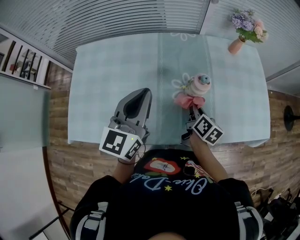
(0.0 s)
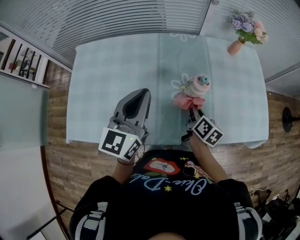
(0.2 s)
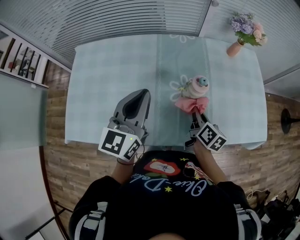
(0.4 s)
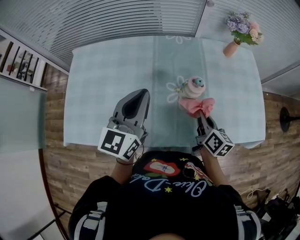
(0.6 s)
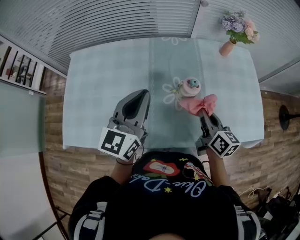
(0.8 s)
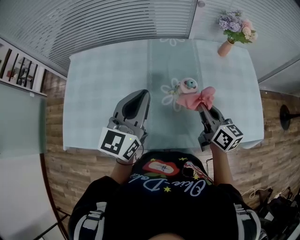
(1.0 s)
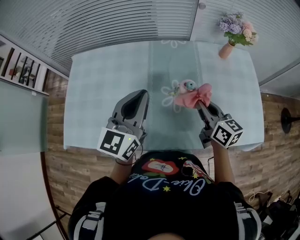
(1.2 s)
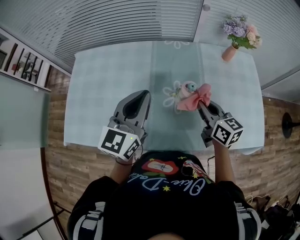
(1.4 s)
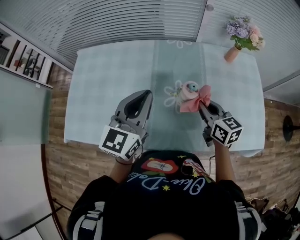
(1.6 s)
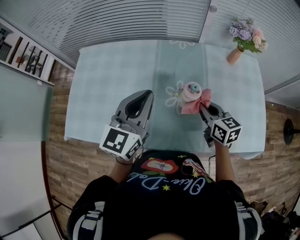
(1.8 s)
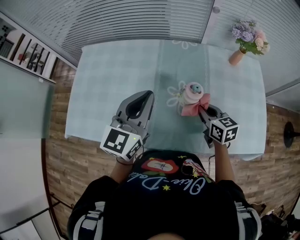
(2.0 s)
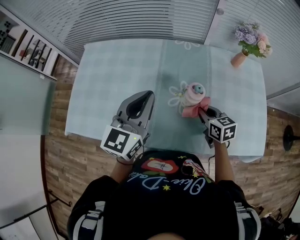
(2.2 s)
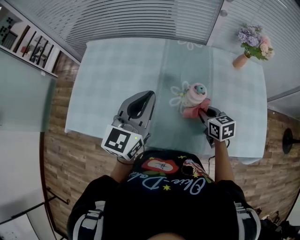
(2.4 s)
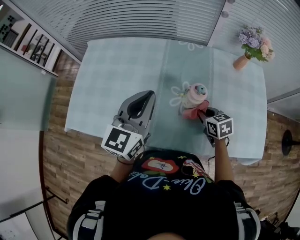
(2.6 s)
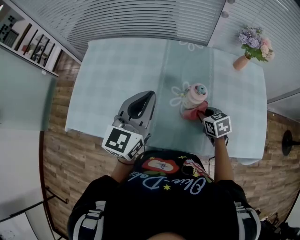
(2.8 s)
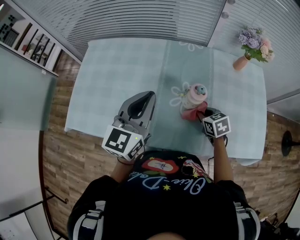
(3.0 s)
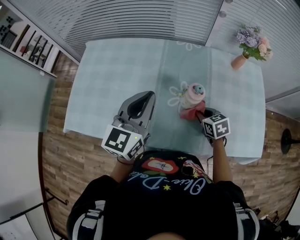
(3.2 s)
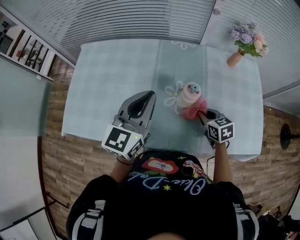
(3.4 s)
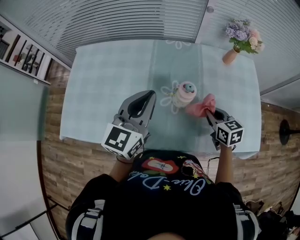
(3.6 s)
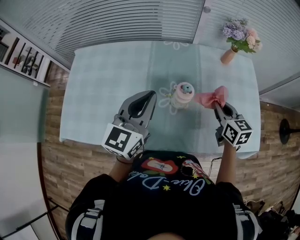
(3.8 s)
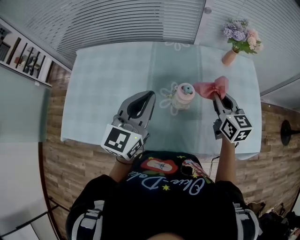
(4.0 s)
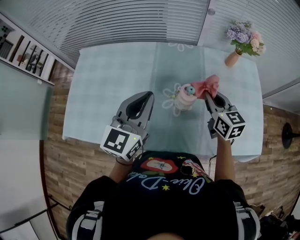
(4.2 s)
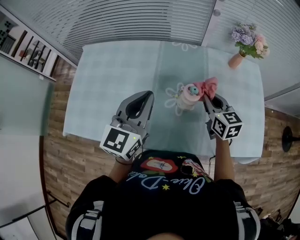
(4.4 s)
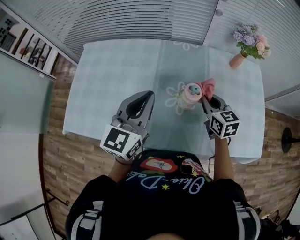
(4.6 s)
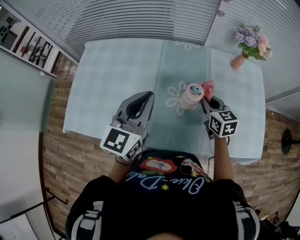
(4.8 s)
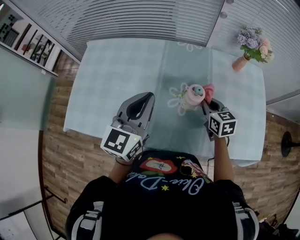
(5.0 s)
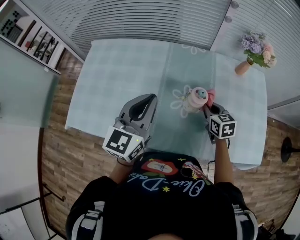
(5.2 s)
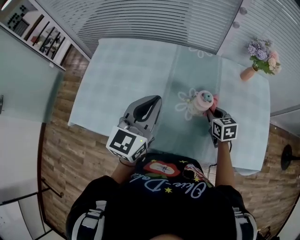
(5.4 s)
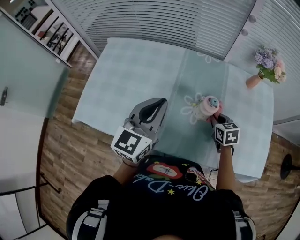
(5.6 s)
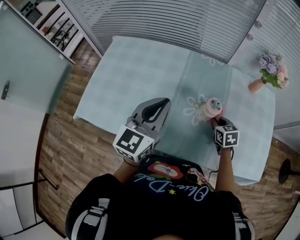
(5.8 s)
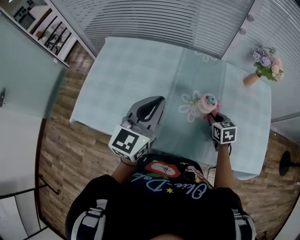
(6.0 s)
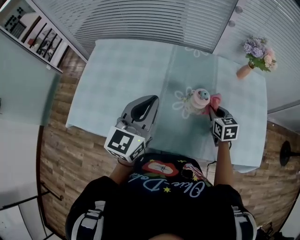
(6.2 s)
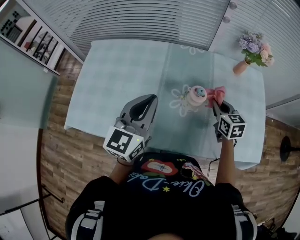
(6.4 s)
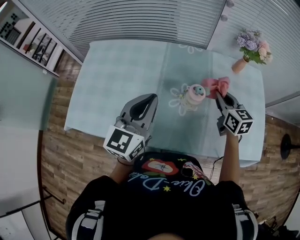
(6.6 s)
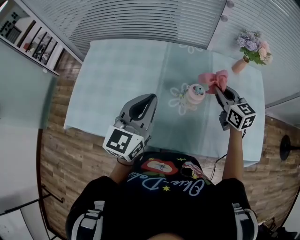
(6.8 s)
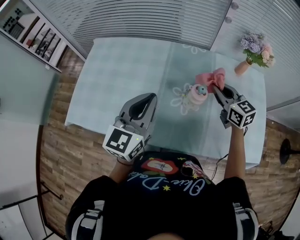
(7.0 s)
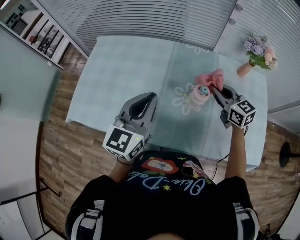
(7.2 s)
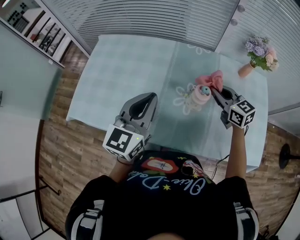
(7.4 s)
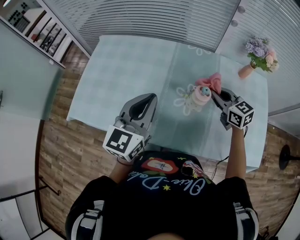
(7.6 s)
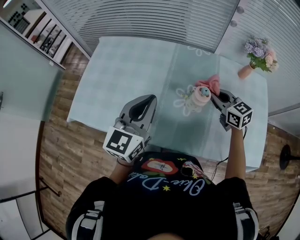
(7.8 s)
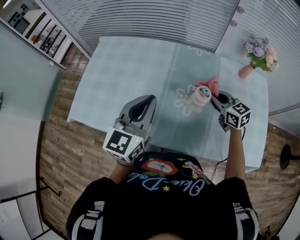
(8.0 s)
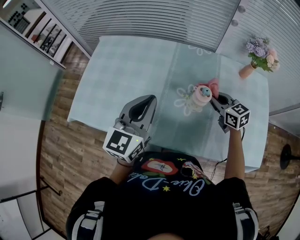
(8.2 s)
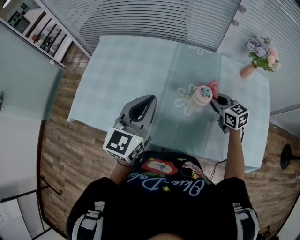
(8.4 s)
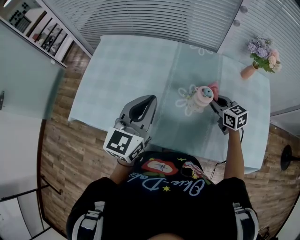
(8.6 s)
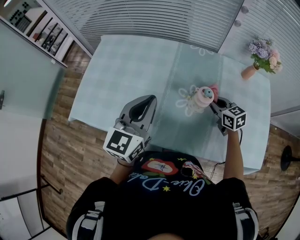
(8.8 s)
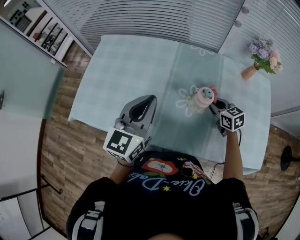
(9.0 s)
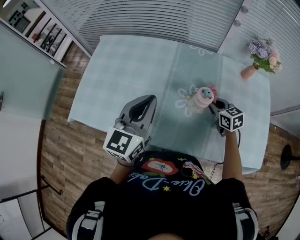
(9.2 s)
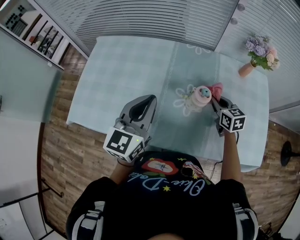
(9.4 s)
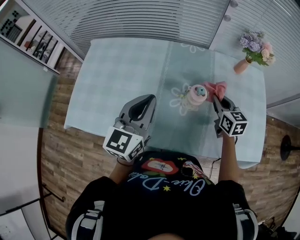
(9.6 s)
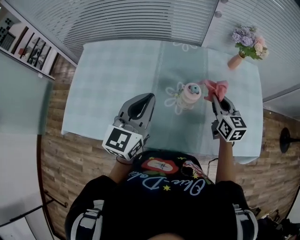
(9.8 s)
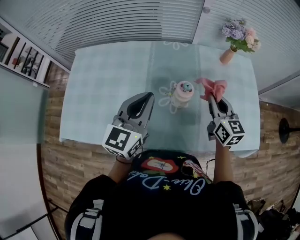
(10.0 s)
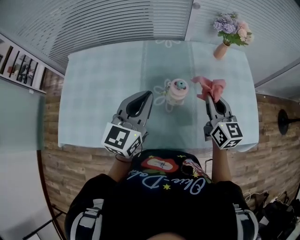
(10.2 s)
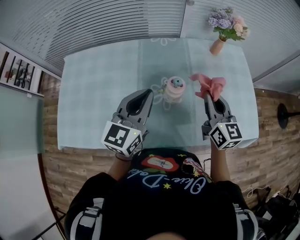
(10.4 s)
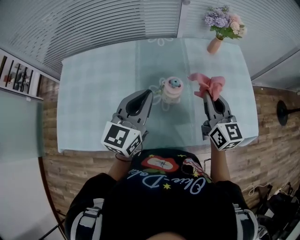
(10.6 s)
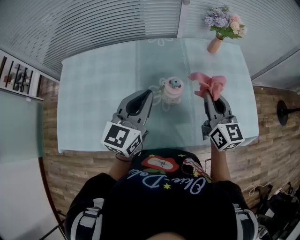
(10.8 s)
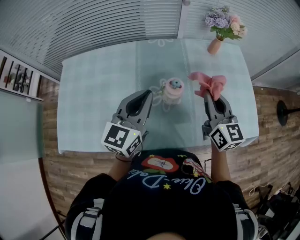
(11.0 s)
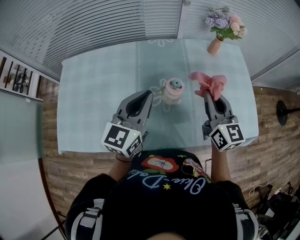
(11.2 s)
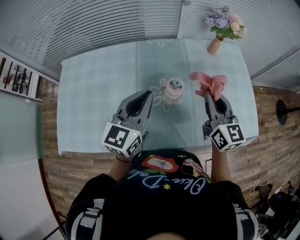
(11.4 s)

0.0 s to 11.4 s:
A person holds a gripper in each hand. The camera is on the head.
0.0 to 1.4 s: The right gripper goes about 10 cm upward, and turns by about 40 degrees.
1.4 to 2.8 s: The right gripper goes approximately 15 cm downward, and points its fingers roughly 30 degrees further downward.
2.8 to 4.2 s: The right gripper goes some 15 cm upward, and rotates some 30 degrees.
4.2 to 5.6 s: The right gripper goes some 15 cm downward, and rotates approximately 30 degrees.
5.6 to 7.2 s: The right gripper moves upward, about 15 cm, and turns by about 30 degrees.
7.2 to 8.6 s: The right gripper moves downward, roughly 10 cm.
8.6 to 10.0 s: The left gripper heads to the right, covering approximately 5 cm, while the right gripper goes some 10 cm upward and to the right, and changes its angle by approximately 40 degrees.
10.0 to 11.4 s: The right gripper goes about 5 cm upward.

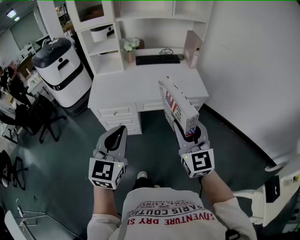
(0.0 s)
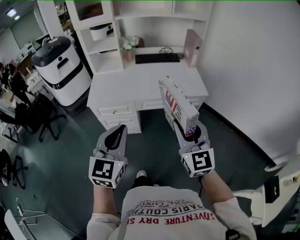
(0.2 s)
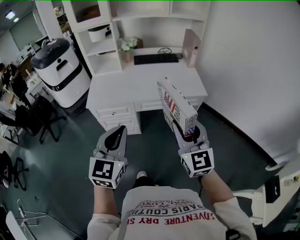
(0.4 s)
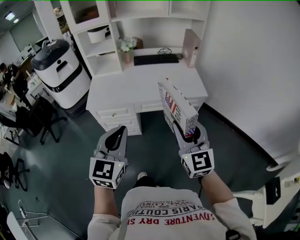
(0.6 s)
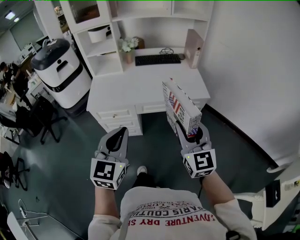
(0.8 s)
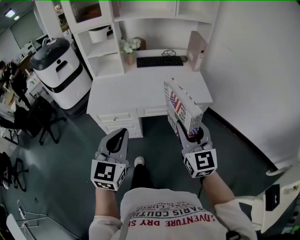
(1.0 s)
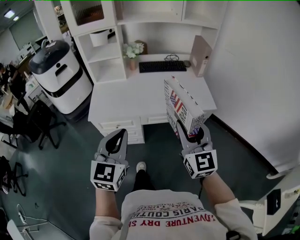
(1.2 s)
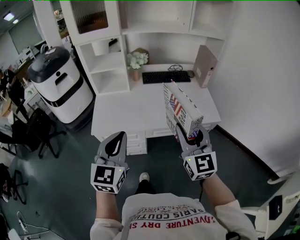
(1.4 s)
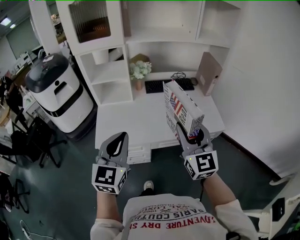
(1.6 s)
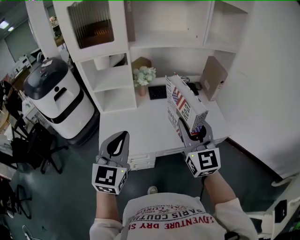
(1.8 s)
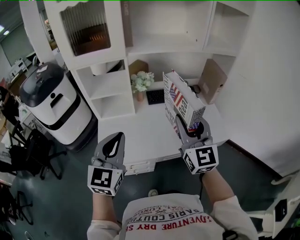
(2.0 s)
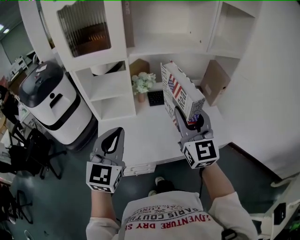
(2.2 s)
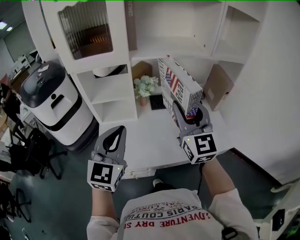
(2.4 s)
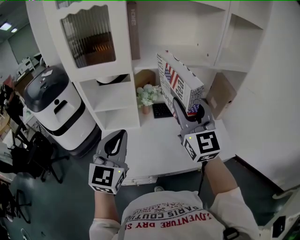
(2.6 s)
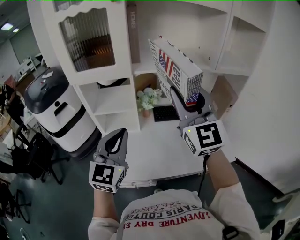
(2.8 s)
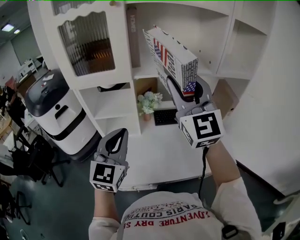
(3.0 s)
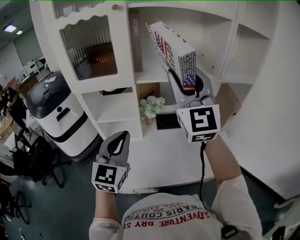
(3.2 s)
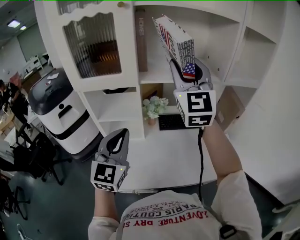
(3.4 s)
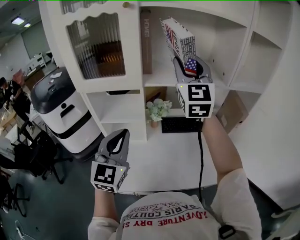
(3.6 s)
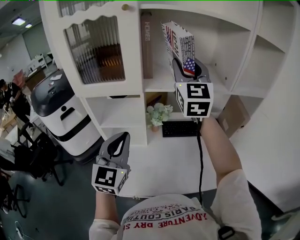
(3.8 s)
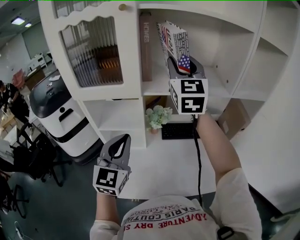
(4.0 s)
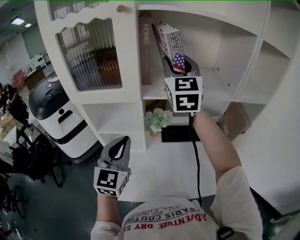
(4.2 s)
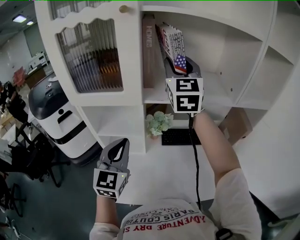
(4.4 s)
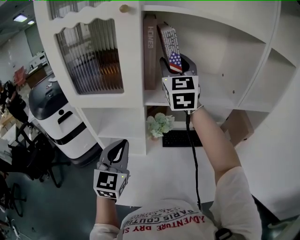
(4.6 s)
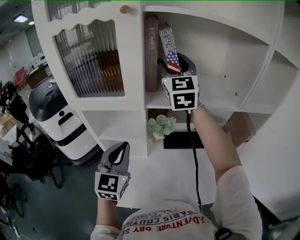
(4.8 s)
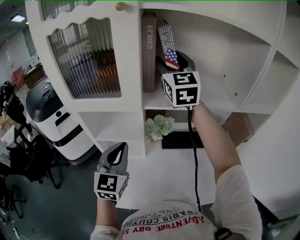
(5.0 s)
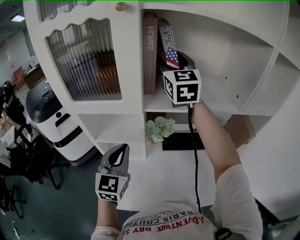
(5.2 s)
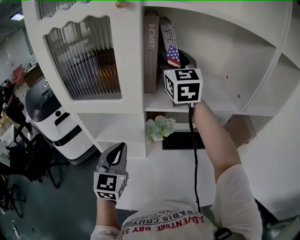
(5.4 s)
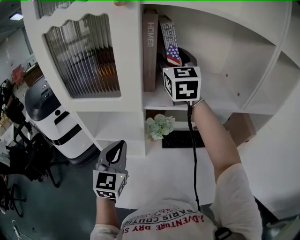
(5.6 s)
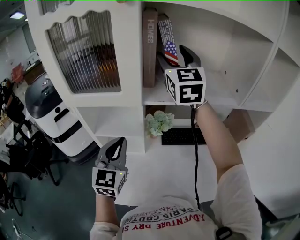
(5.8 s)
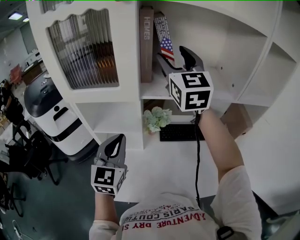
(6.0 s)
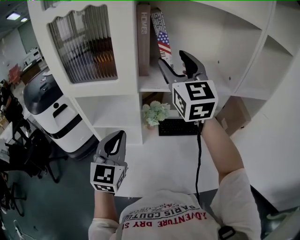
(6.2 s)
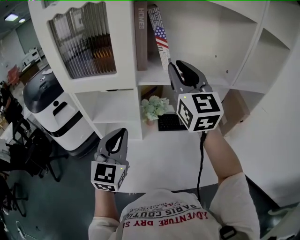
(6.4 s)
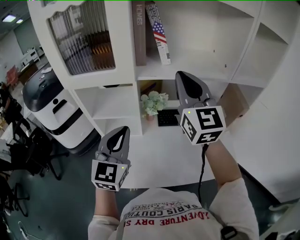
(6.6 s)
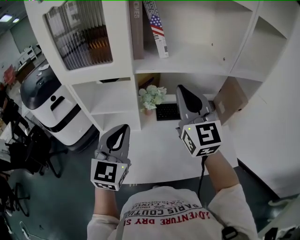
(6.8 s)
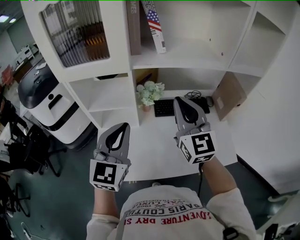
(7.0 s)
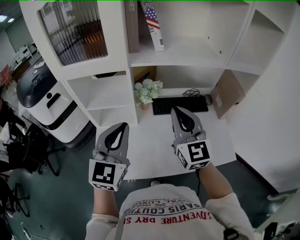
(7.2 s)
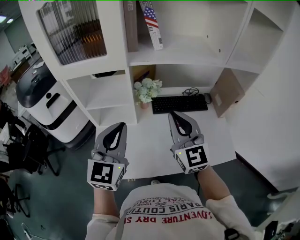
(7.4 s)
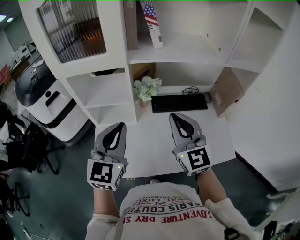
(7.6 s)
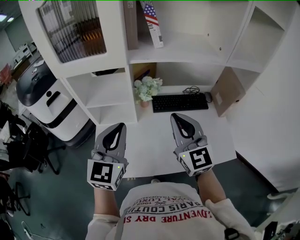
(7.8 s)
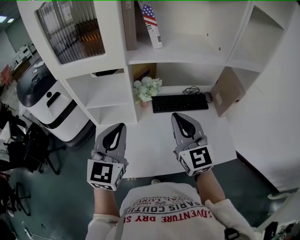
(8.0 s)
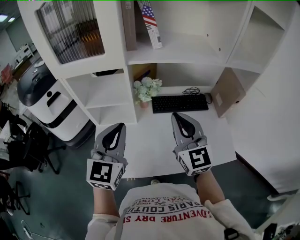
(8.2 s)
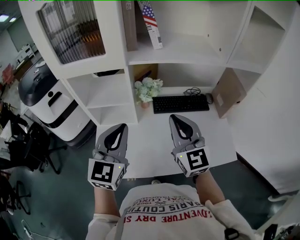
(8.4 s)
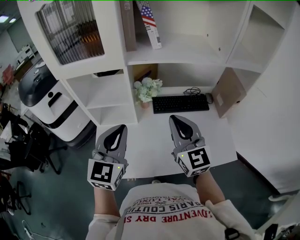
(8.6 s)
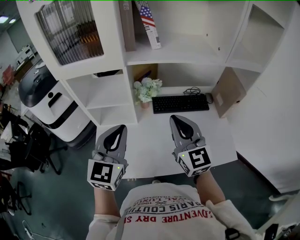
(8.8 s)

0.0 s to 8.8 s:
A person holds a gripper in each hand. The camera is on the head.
0.0 to 1.4 s: The left gripper travels forward and to the left by some 20 cm, while the right gripper heads forward, covering about 20 cm.
1.4 to 3.0 s: The right gripper shifts about 40 cm forward and upward, and swivels some 20 degrees. The left gripper shifts some 30 cm forward.
3.0 to 4.4 s: The right gripper goes some 25 cm forward. Meanwhile the left gripper is displaced forward by about 10 cm.
4.4 to 5.8 s: The right gripper opens its fingers.
5.8 to 7.4 s: The left gripper travels backward by roughly 10 cm. Meanwhile the right gripper goes about 35 cm backward and downward, and closes.
7.4 to 8.8 s: There are only small adjustments of the grippers.

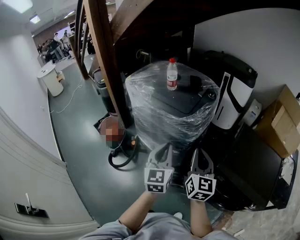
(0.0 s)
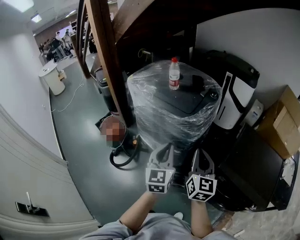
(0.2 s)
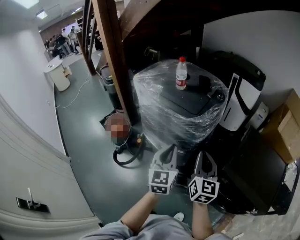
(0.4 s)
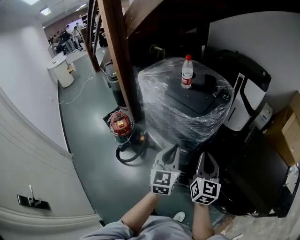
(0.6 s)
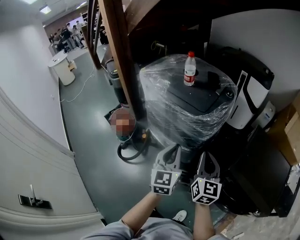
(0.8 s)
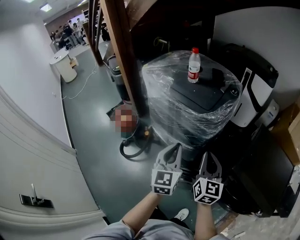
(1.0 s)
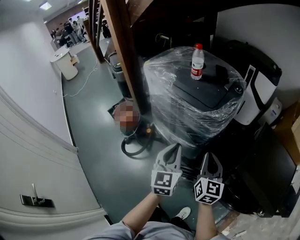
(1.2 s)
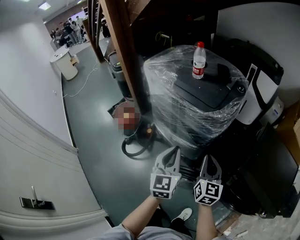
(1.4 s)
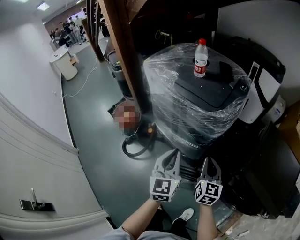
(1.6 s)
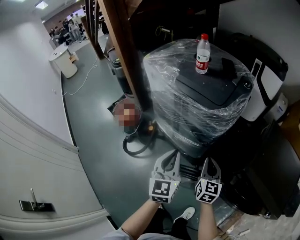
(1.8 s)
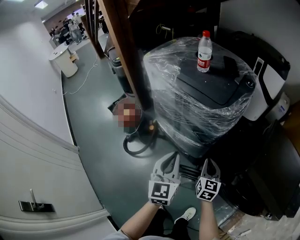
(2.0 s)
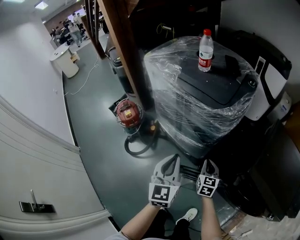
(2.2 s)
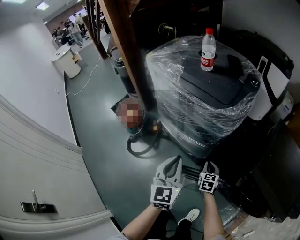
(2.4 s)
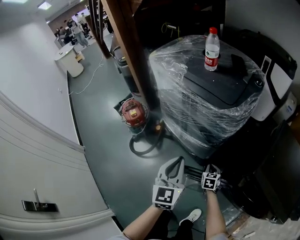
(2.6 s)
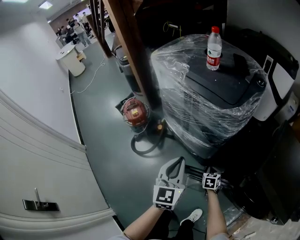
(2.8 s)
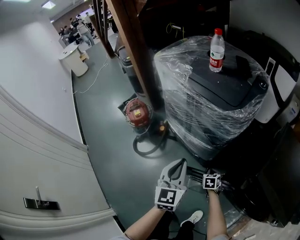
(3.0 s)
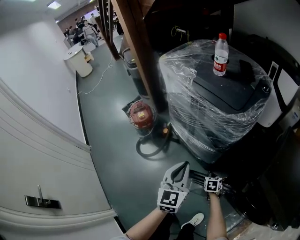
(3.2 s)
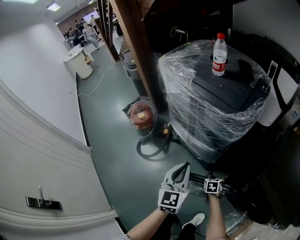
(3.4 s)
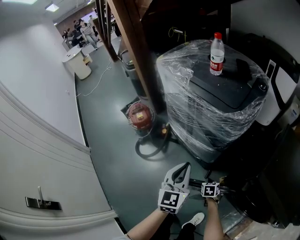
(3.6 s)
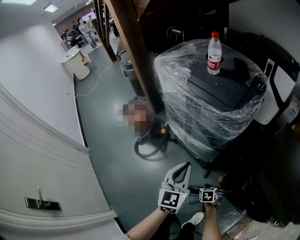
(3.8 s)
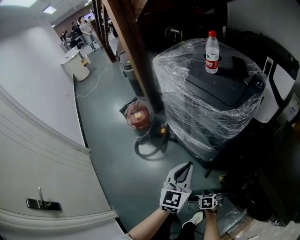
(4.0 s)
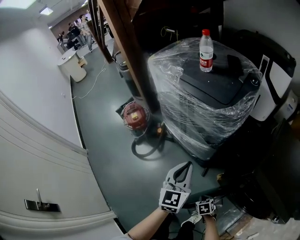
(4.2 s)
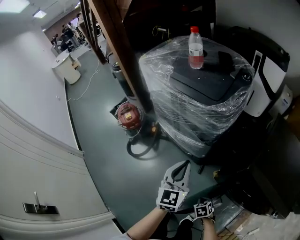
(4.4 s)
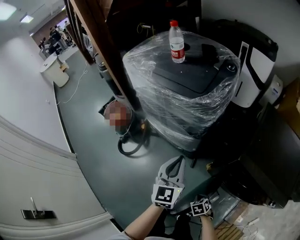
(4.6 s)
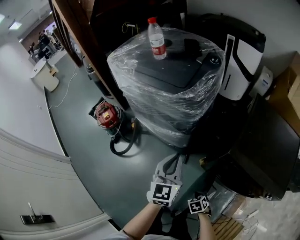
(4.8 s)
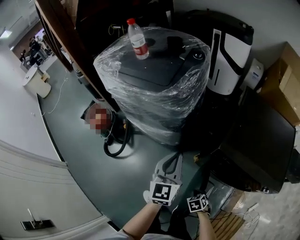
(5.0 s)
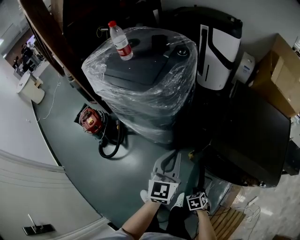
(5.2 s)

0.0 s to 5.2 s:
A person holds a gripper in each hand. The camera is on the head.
0.0 to 1.8 s: The left gripper is displaced downward and to the left by about 10 cm. Meanwhile the right gripper is displaced downward by roughly 20 cm.
1.8 to 3.4 s: The right gripper travels downward by approximately 30 cm, and tips its fingers downward by roughly 40 degrees. Meanwhile the left gripper ends up roughly 5 cm from where it was.
3.4 to 5.2 s: The left gripper travels to the right by about 25 cm, while the right gripper shifts about 30 cm backward and to the right.
